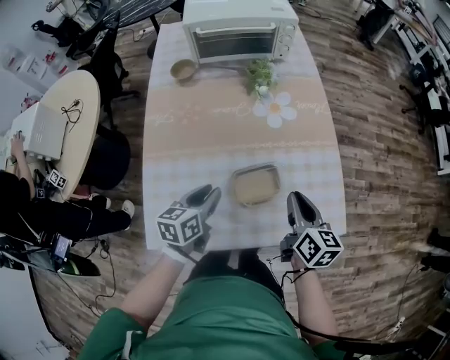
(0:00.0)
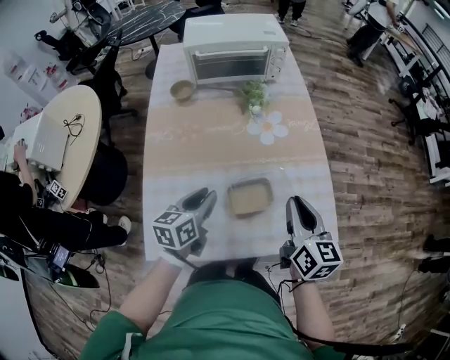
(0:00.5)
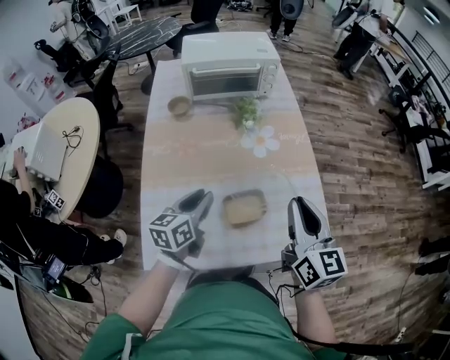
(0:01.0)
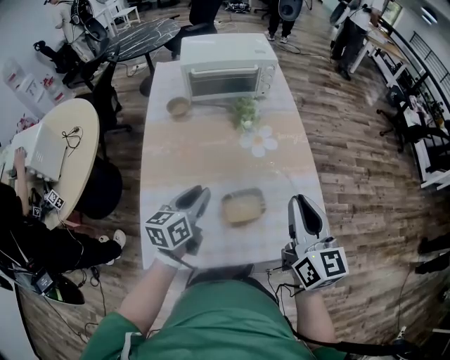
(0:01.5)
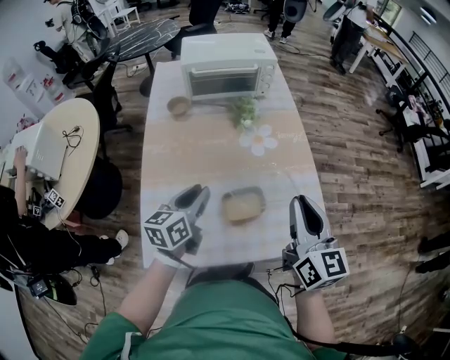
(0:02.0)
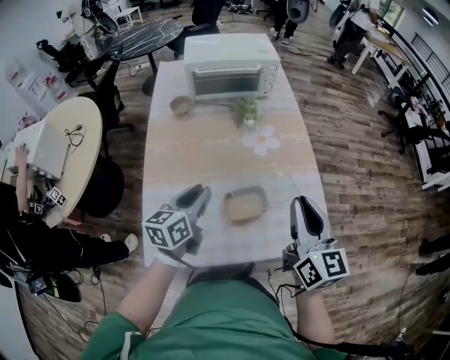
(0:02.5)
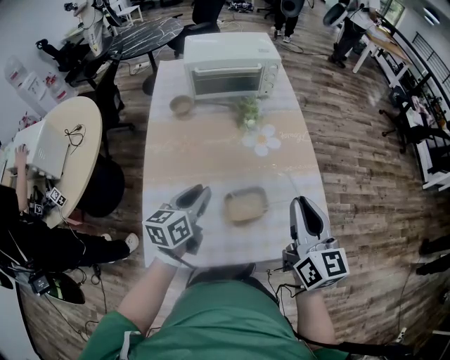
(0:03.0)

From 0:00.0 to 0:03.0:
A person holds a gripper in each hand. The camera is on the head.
From 0:00.0 to 0:01.5: The right gripper heads upward, covering roughly 20 cm, and changes its angle by approximately 30 degrees, while the left gripper heads upward, covering approximately 10 cm.
From 0:01.5 to 0:03.0: The two grippers keep their place.

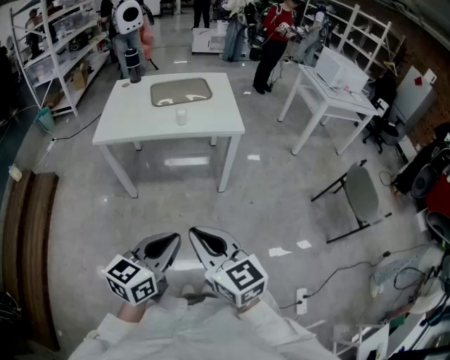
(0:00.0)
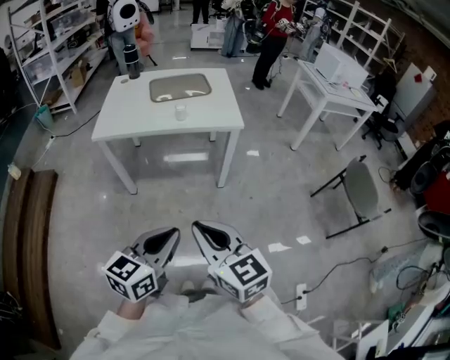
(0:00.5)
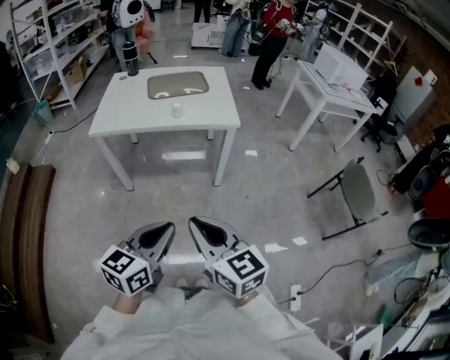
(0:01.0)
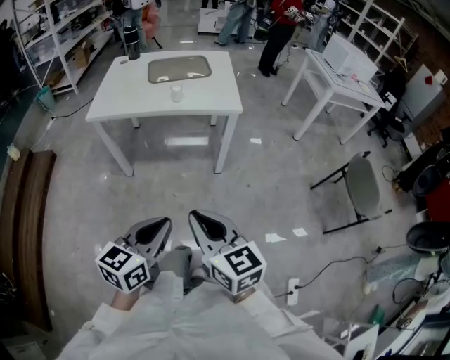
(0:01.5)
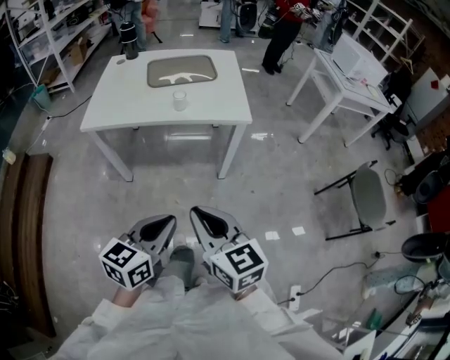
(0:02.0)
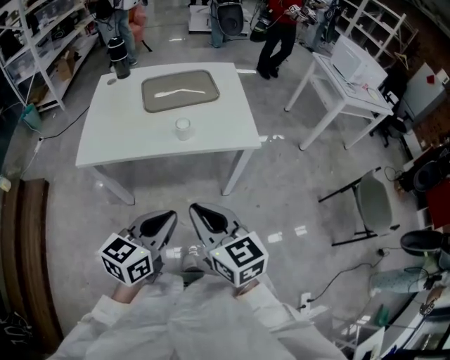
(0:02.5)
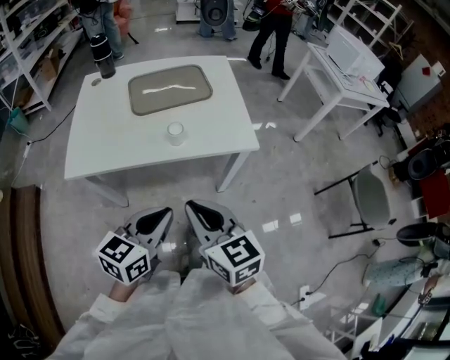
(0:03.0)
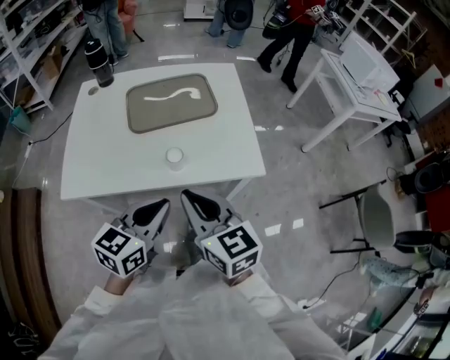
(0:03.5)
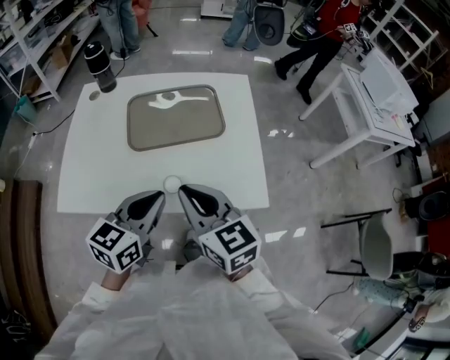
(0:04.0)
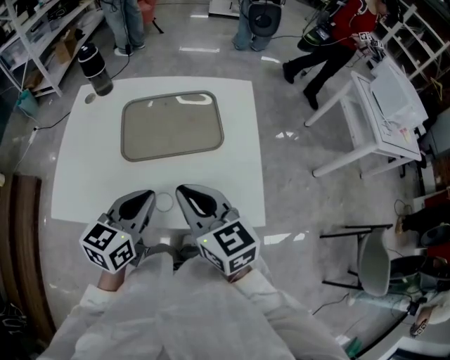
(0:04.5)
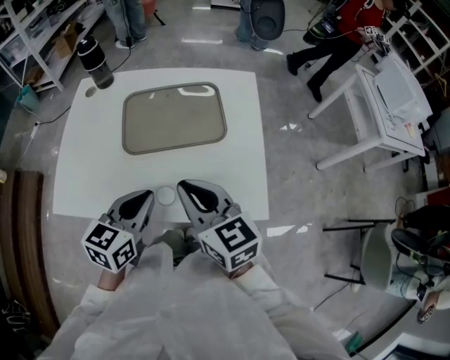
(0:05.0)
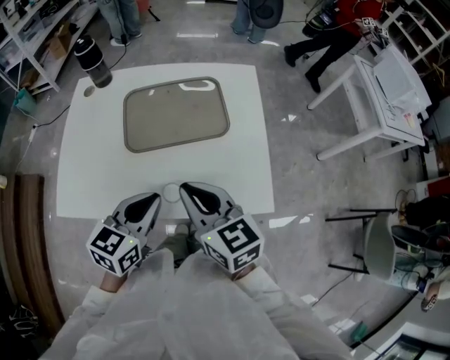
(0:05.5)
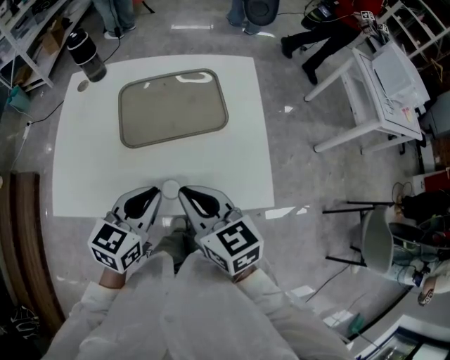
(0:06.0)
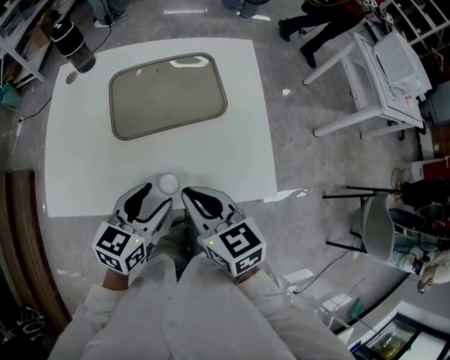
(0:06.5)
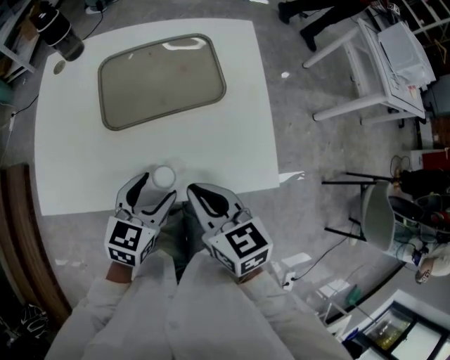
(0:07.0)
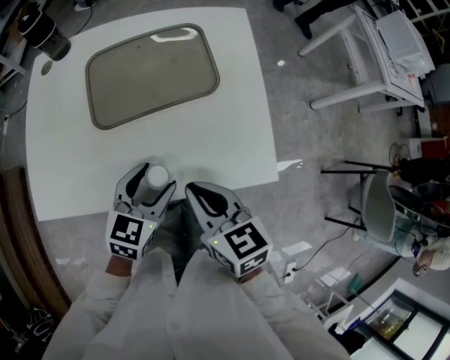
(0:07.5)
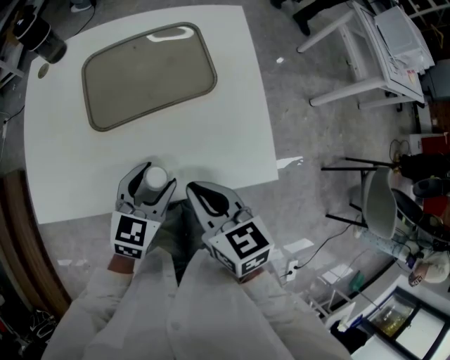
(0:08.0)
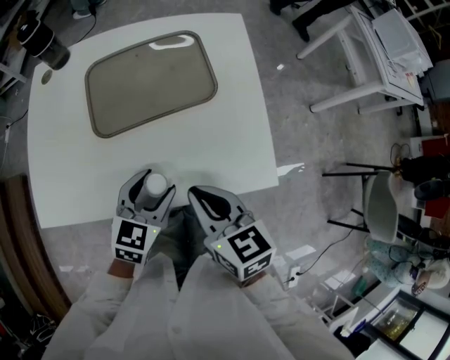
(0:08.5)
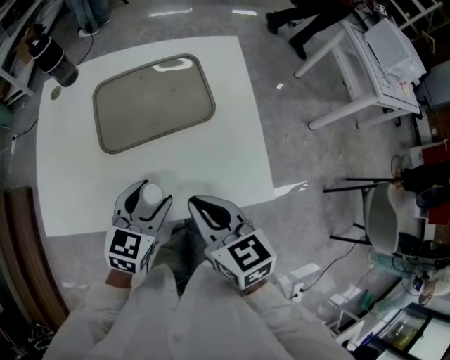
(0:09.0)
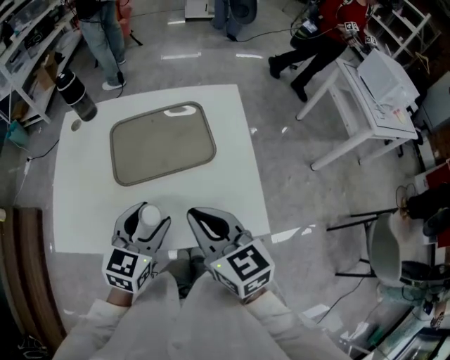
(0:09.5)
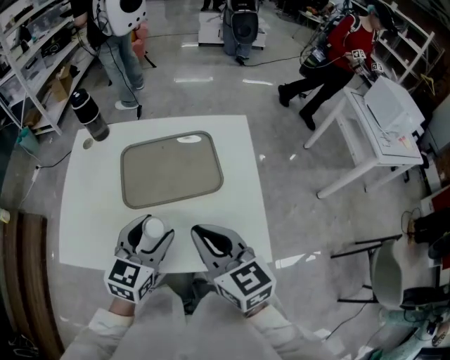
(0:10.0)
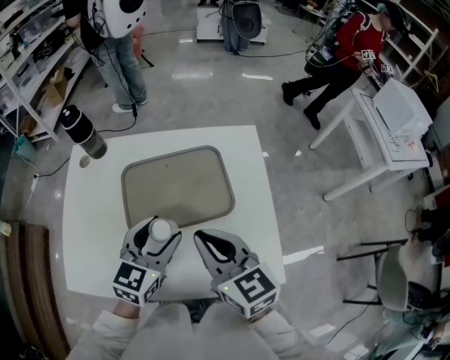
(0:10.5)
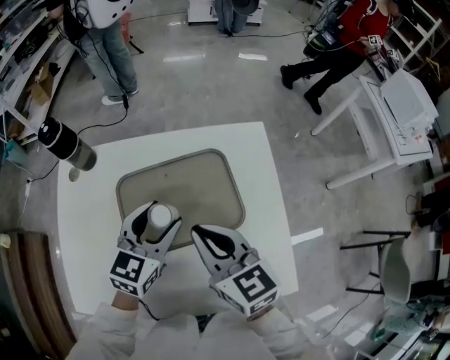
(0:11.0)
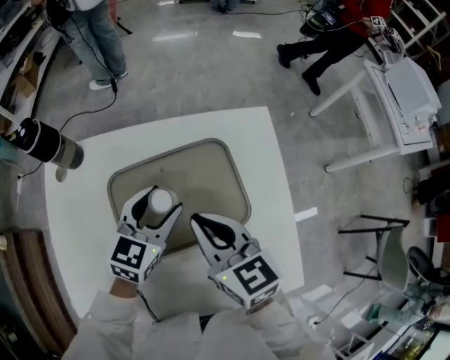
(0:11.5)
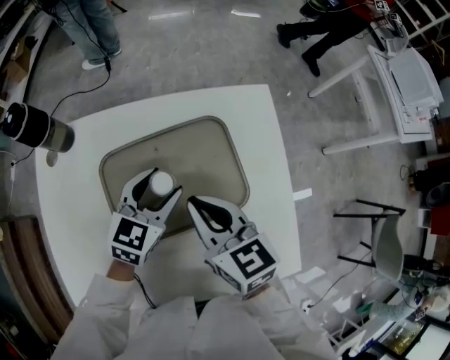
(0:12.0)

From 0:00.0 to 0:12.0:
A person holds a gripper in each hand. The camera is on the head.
From 0:00.0 to 0:02.0: The grippers both shift forward by approximately 15 cm.
From 0:02.0 to 0:04.0: The pair of grippers is taken forward, roughly 50 cm.
From 0:04.0 to 0:06.0: The right gripper shifts by about 5 cm. The left gripper moves forward, approximately 5 cm.
From 0:06.0 to 0:08.0: The grippers both shift downward by roughly 10 cm. The left gripper opens up.
From 0:08.0 to 0:10.0: The left gripper is displaced upward by roughly 15 cm. Meanwhile the right gripper is displaced upward and forward by some 15 cm, and turns by about 20 degrees.
From 0:10.0 to 0:12.0: Both grippers move forward and downward, some 25 cm.

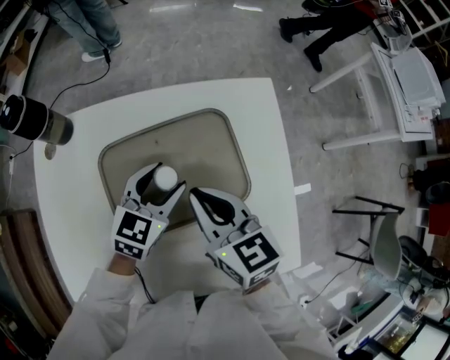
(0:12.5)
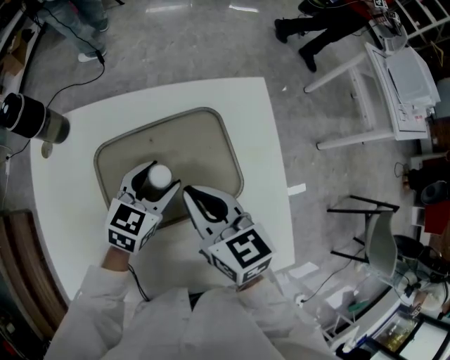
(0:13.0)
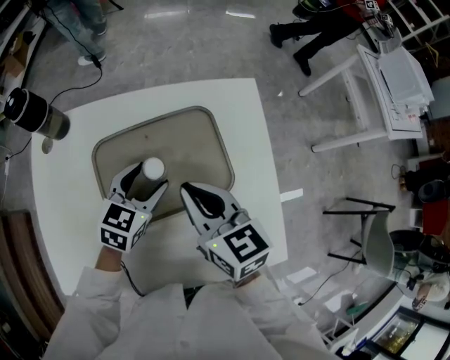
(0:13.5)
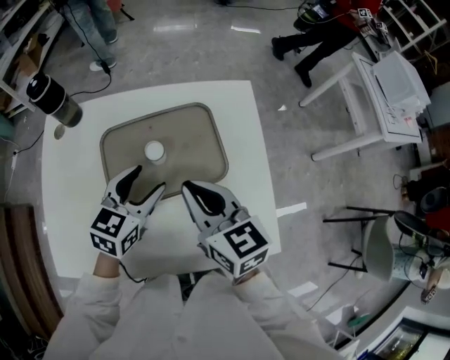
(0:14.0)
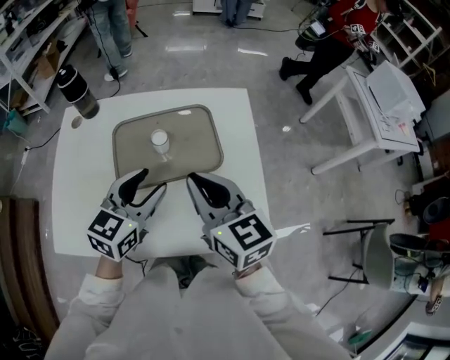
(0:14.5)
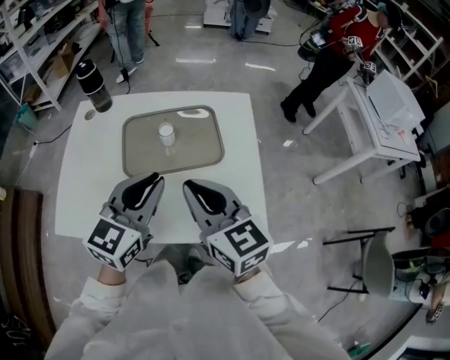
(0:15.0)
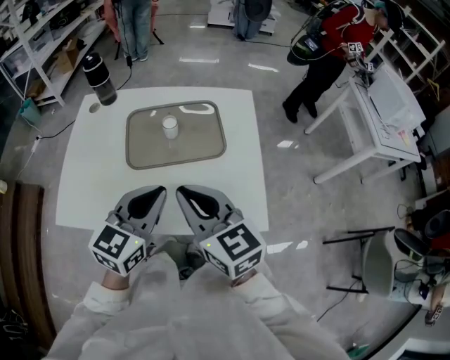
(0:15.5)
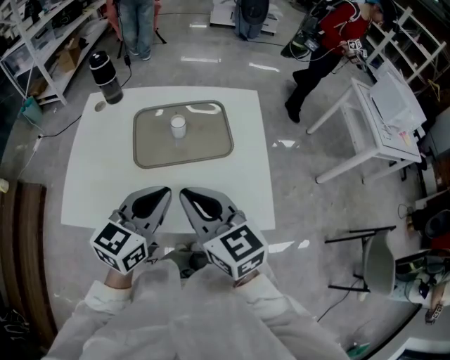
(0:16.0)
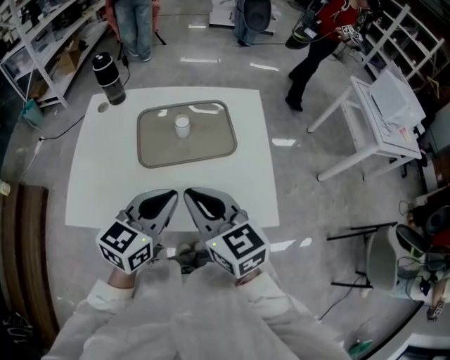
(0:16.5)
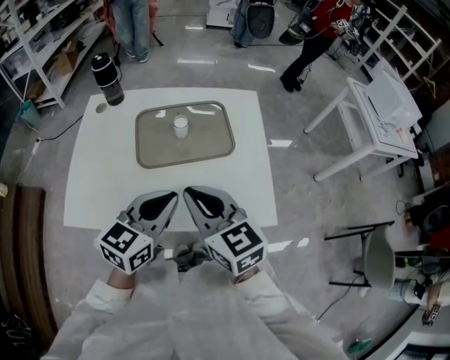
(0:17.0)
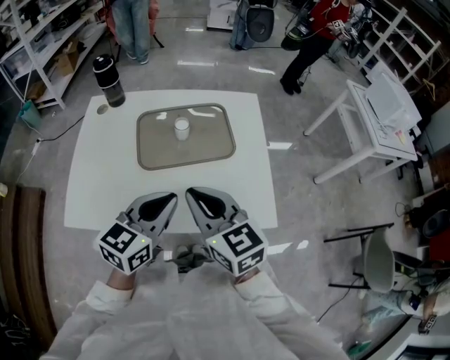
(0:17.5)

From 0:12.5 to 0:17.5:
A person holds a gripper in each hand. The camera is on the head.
From 0:12.5 to 0:15.0: Both grippers move backward and upward, about 30 cm. The left gripper rotates roughly 20 degrees, and closes, while the right gripper swivels some 20 degrees.
From 0:15.0 to 0:17.5: The two grippers go some 5 cm backward.

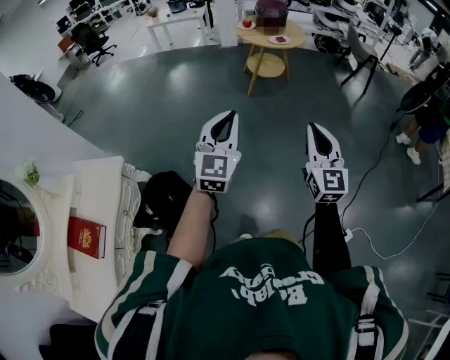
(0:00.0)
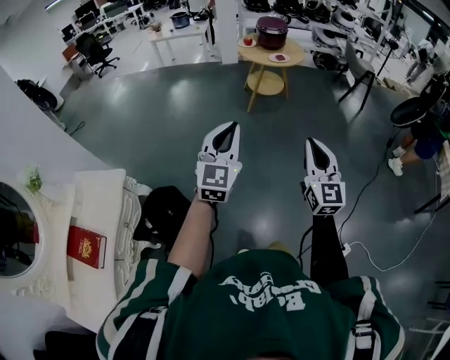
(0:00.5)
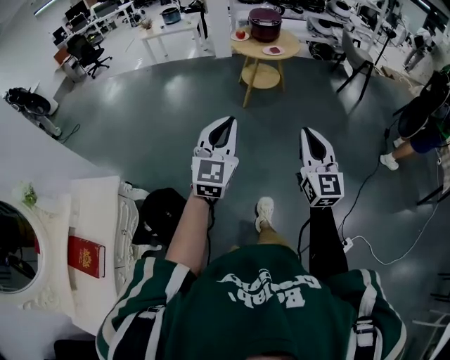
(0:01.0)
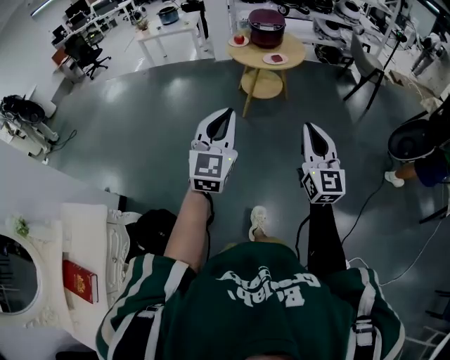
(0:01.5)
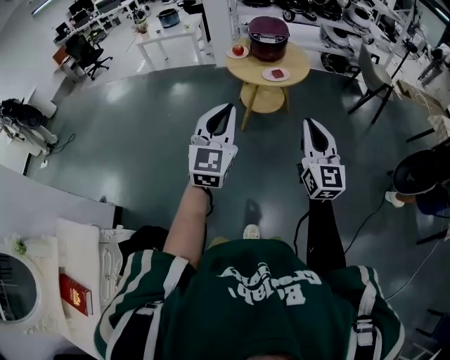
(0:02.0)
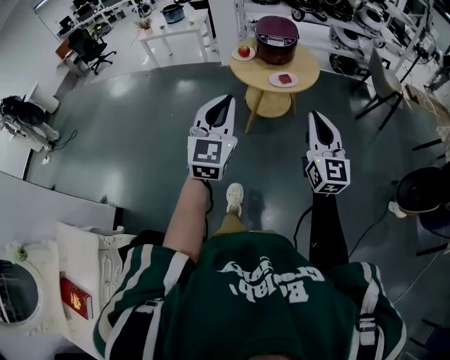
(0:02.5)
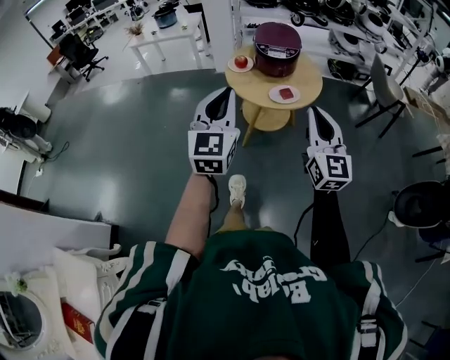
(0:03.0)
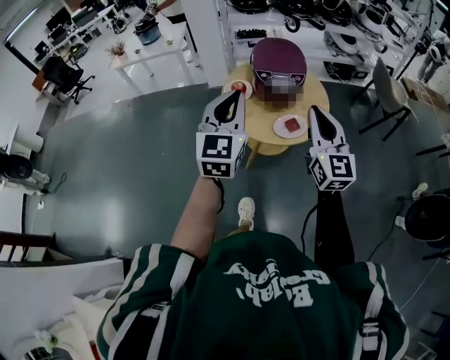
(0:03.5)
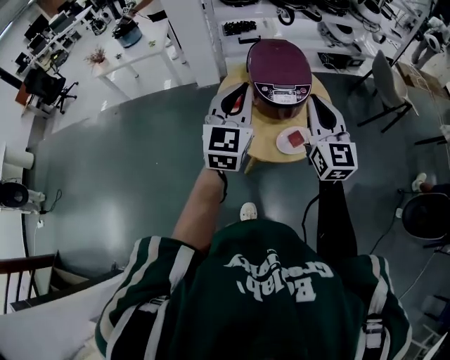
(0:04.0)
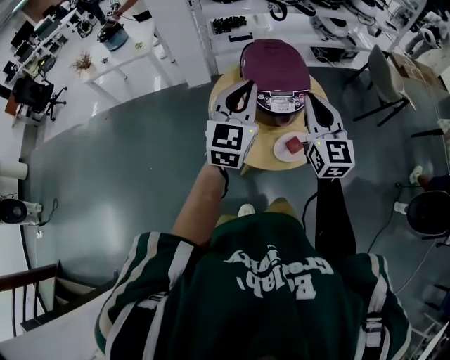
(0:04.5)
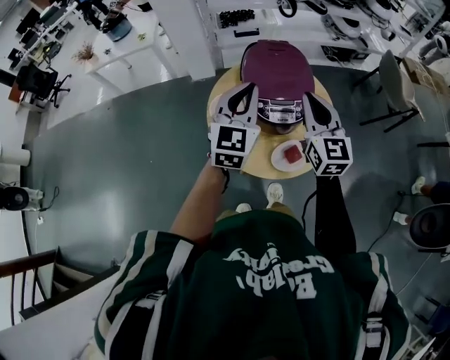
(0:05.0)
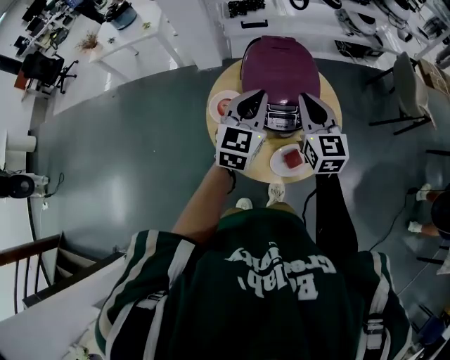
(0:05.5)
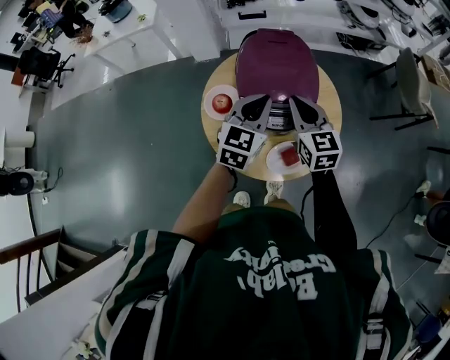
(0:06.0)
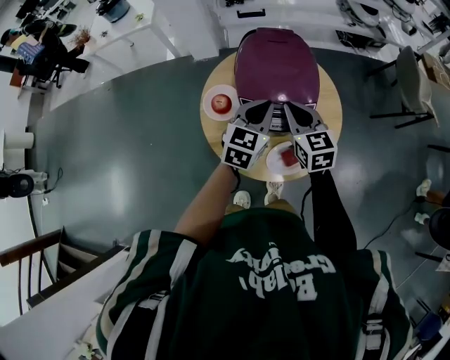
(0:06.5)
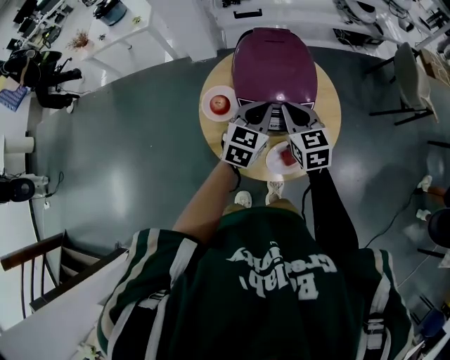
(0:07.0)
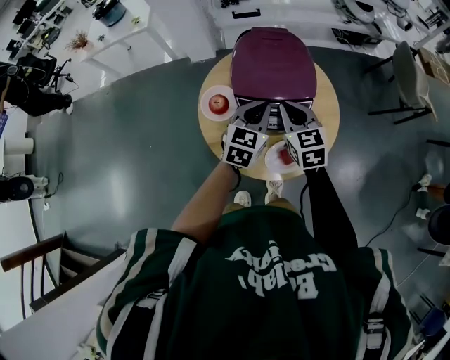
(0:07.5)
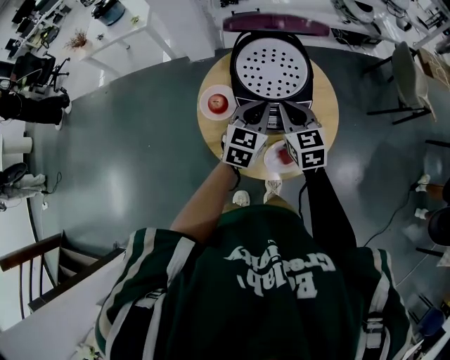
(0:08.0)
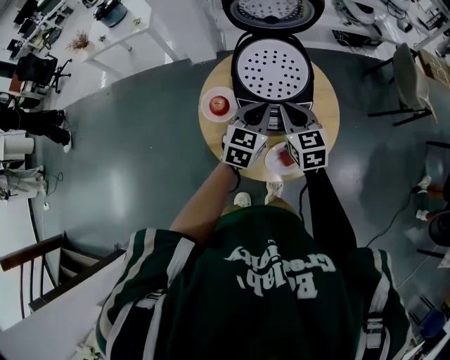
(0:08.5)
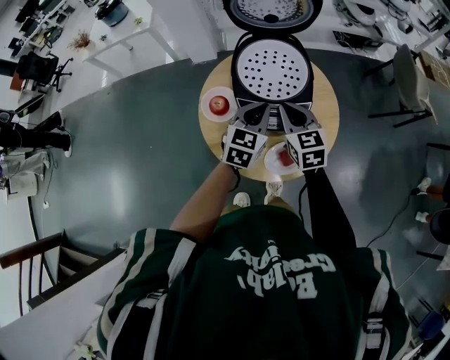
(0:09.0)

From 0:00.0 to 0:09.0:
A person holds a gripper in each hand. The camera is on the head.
From 0:00.0 to 0:02.0: The two grippers travel together, forward, about 40 cm.
From 0:02.0 to 0:04.5: The two grippers travel together, forward, some 70 cm.
From 0:04.5 to 0:07.0: The left gripper goes approximately 25 cm downward, forward and to the right, and changes its angle by about 30 degrees. The right gripper goes some 25 cm downward and forward, and changes its angle by about 30 degrees.
From 0:07.0 to 0:09.0: Neither gripper changes place.
